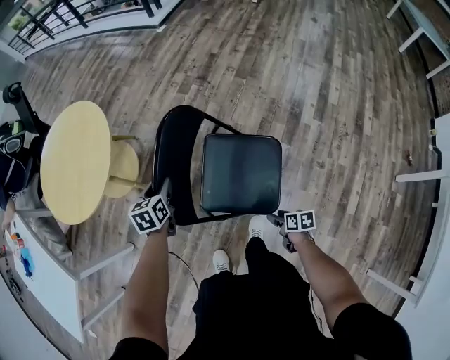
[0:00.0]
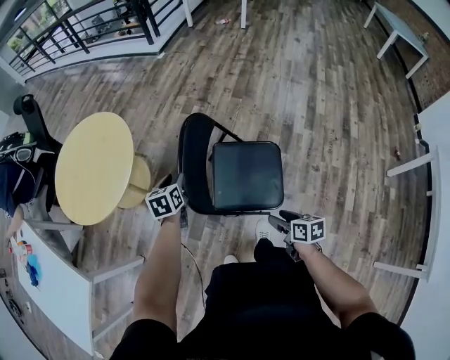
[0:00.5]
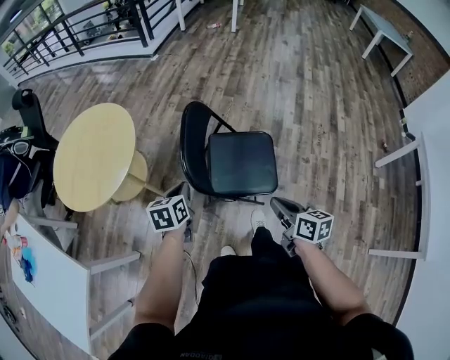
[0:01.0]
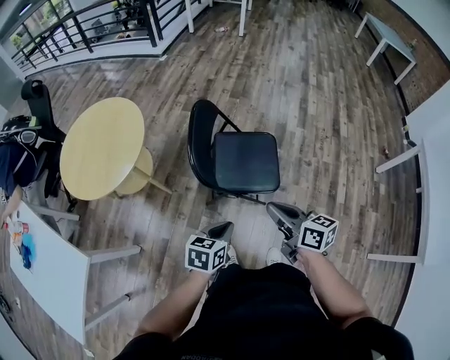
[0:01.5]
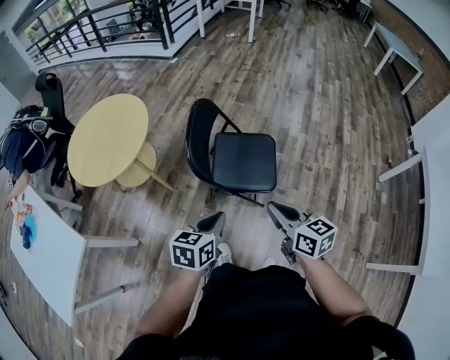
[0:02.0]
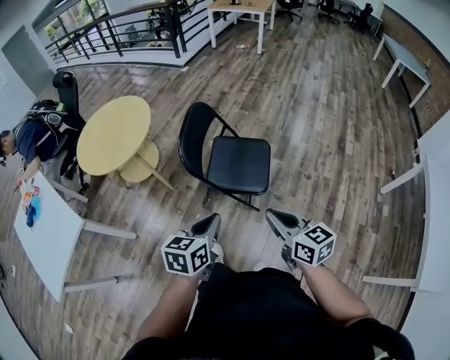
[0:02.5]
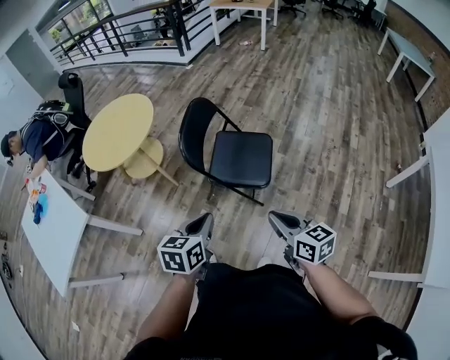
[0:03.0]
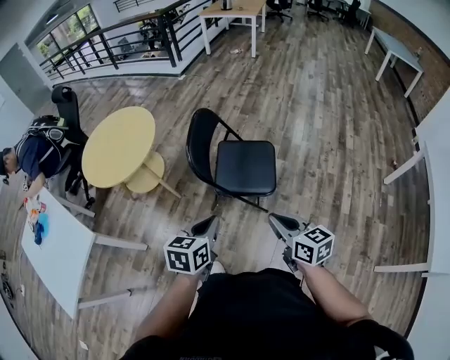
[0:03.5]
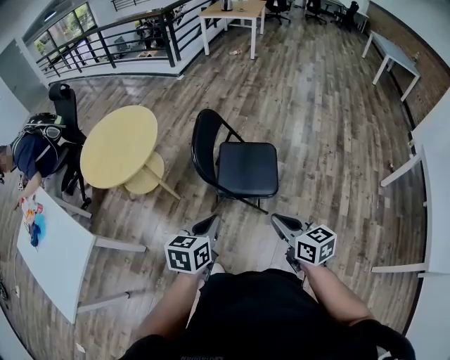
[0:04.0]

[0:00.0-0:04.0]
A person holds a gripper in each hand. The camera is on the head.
0:00.0 to 0:02.0: The left gripper moves approximately 40 cm, rotates roughly 30 degrees, and closes its fingers, while the right gripper travels upward by about 40 cm, tilts its fingers approximately 30 degrees upward, and closes up.
0:02.0 to 0:04.0: The right gripper travels backward by roughly 10 cm. The left gripper ends up roughly 5 cm from where it was.

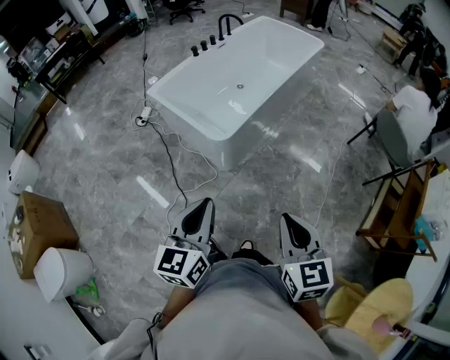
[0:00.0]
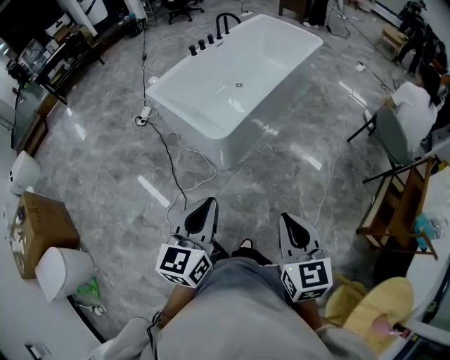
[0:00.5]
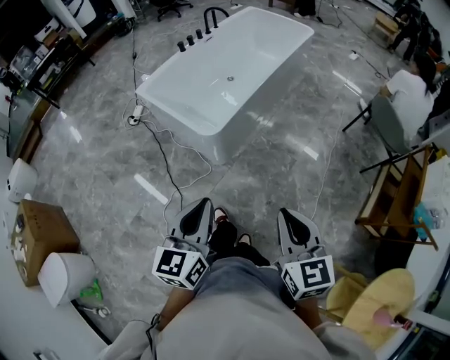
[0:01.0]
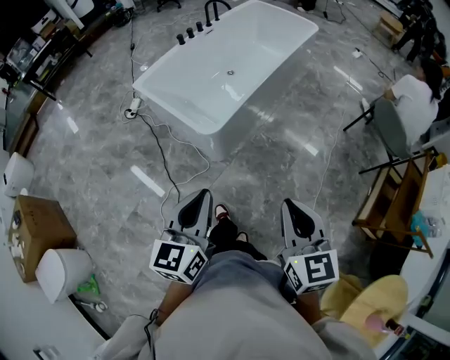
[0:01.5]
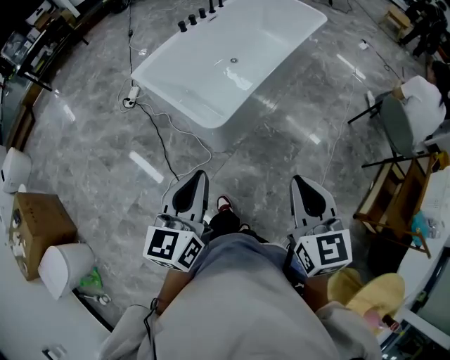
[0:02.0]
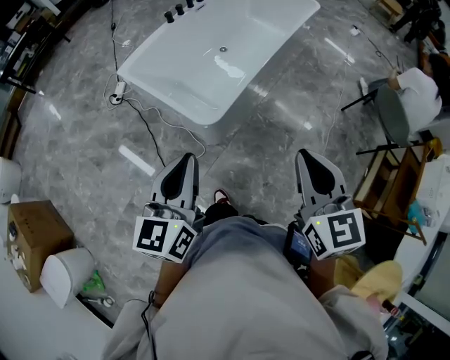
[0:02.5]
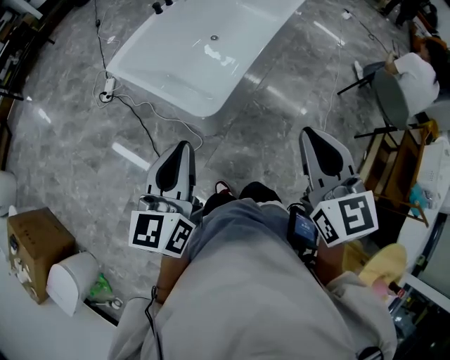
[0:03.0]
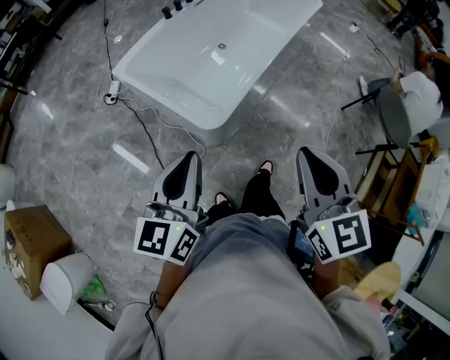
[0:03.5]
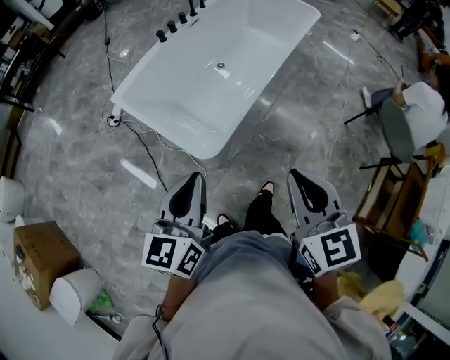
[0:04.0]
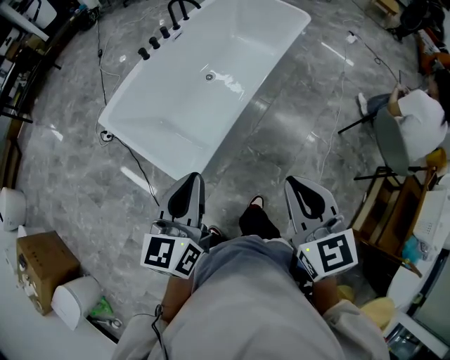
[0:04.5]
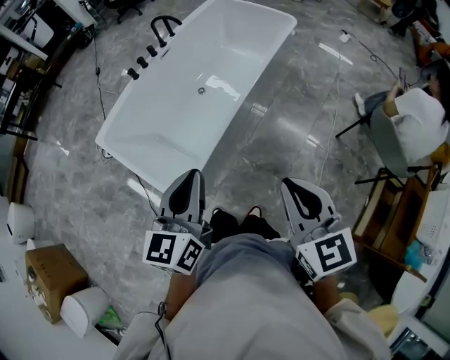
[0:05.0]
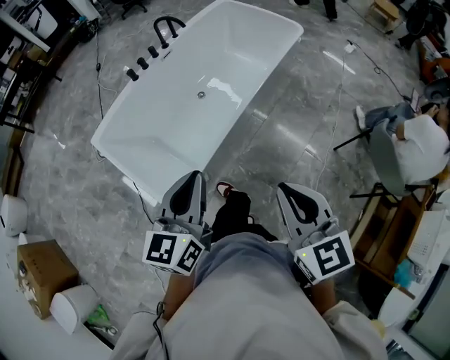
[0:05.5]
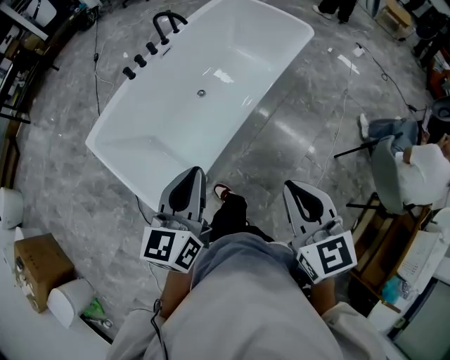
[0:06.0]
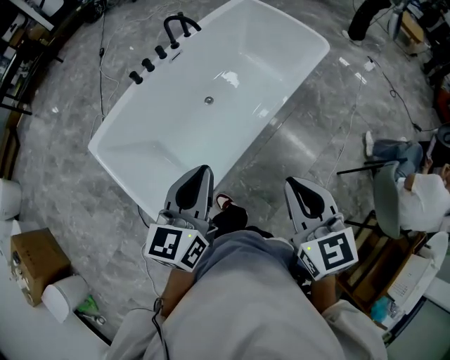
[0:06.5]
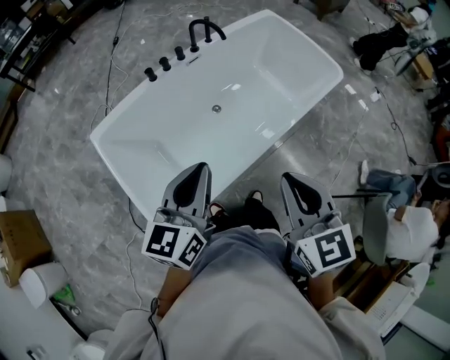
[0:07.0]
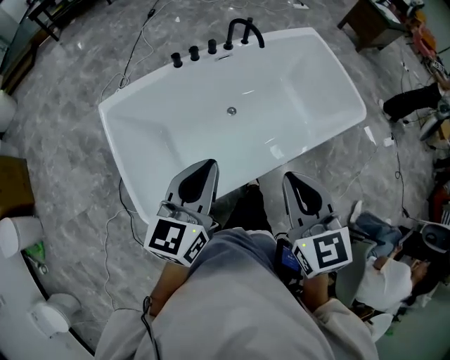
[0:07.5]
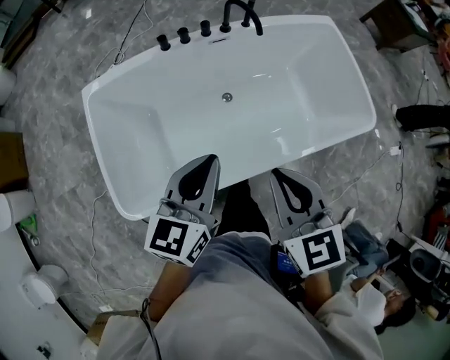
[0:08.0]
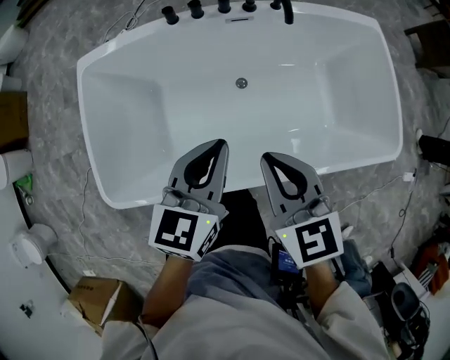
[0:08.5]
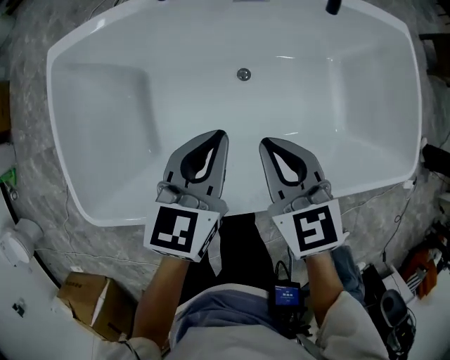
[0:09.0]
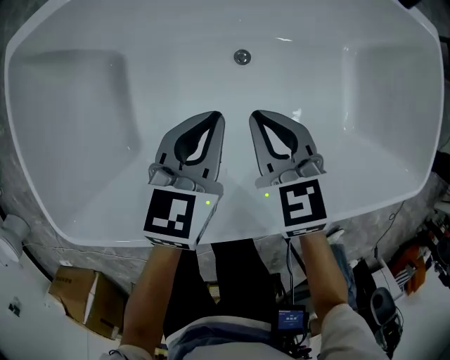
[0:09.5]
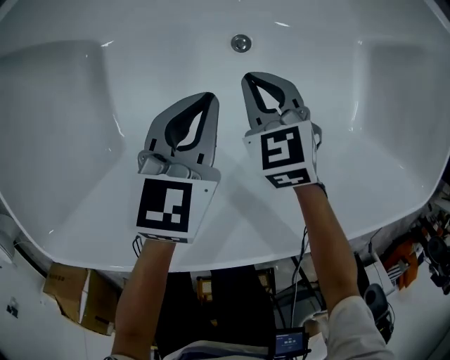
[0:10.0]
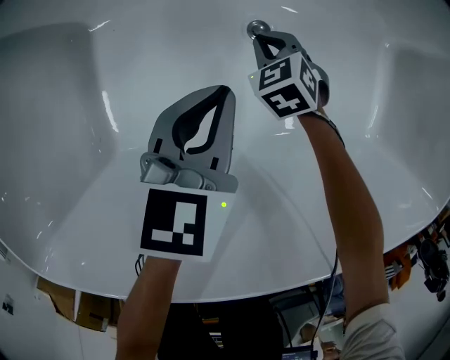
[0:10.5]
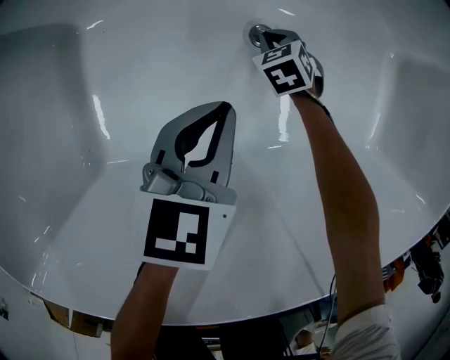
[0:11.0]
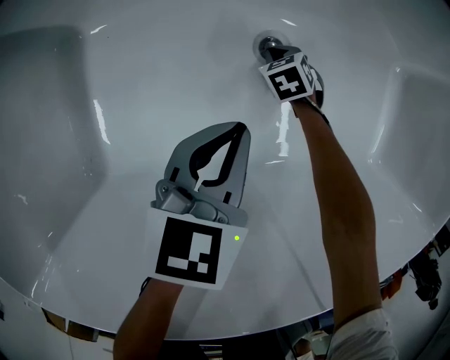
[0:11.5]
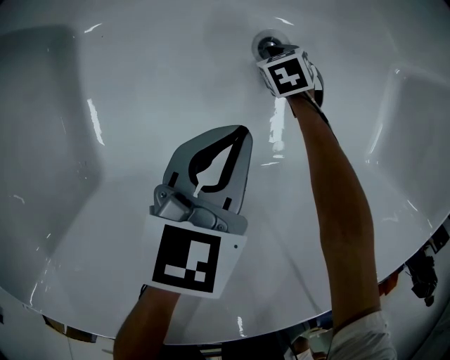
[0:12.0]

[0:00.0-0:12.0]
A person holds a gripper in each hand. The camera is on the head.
0:00.0 to 0:02.0: The grippers both shift forward by roughly 15 cm.
0:02.0 to 0:04.0: Both grippers travel together forward, approximately 20 cm.
0:04.0 to 0:06.0: The grippers both shift forward and to the right by some 35 cm.
0:06.0 to 0:08.0: The left gripper moves approximately 30 cm, and changes its angle by about 20 degrees. The right gripper shifts by roughly 40 cm, and turns by some 40 degrees.
0:08.0 to 0:10.0: The grippers both shift downward and forward by about 60 cm. The right gripper changes its angle by about 30 degrees. The left gripper changes its angle by some 20 degrees.
0:10.0 to 0:12.0: The right gripper goes approximately 30 cm downward, and turns by some 30 degrees; the left gripper moves downward, approximately 10 cm.

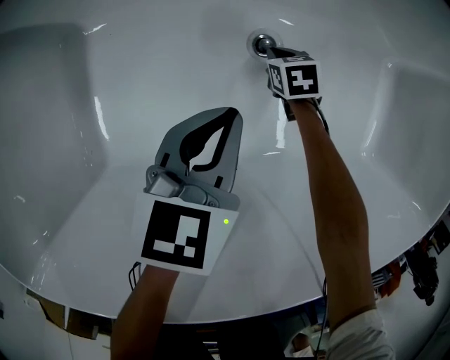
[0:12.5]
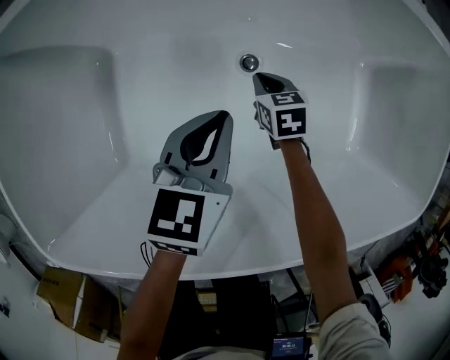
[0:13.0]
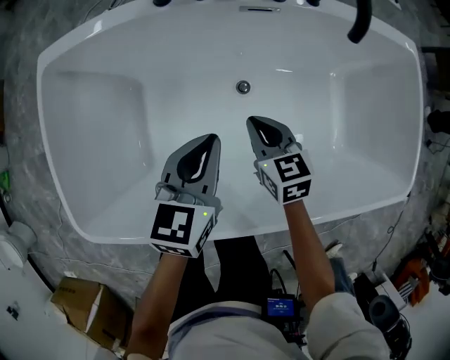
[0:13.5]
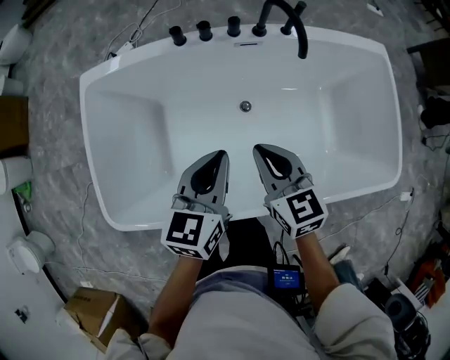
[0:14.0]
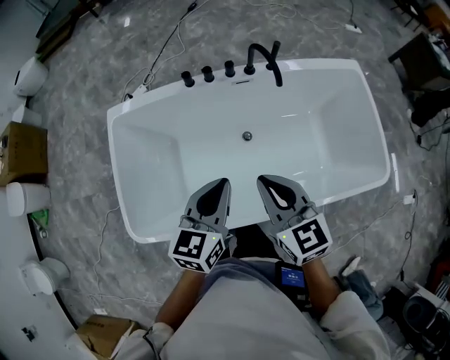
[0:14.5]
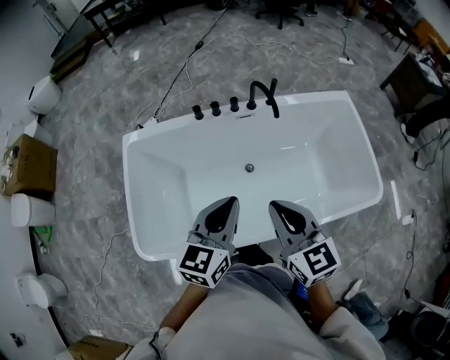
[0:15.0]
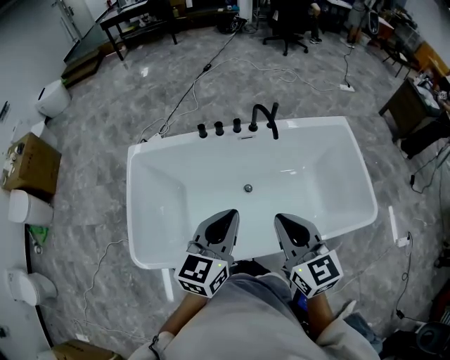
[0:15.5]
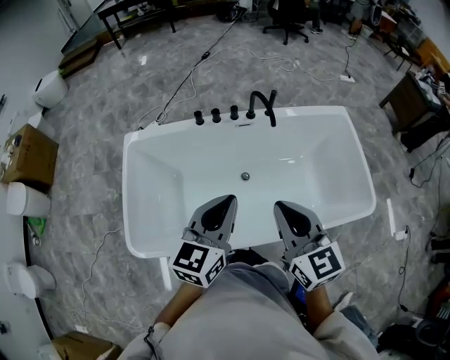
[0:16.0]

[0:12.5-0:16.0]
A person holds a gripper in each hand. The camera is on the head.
0:12.5 to 0:14.5: Both grippers move upward, approximately 70 cm. The left gripper turns by approximately 20 degrees; the right gripper tips its fingers upward by some 50 degrees.
0:14.5 to 0:16.0: Both grippers travel together upward and backward, roughly 15 cm.

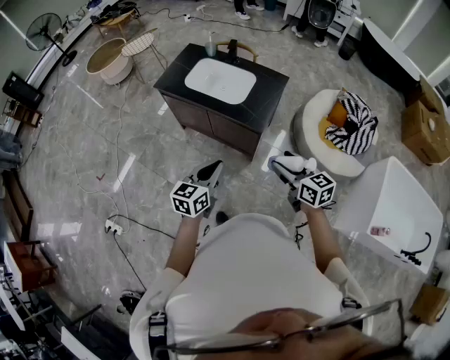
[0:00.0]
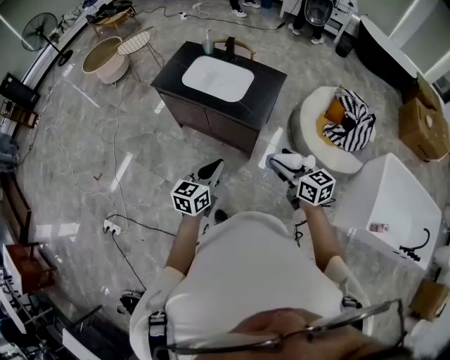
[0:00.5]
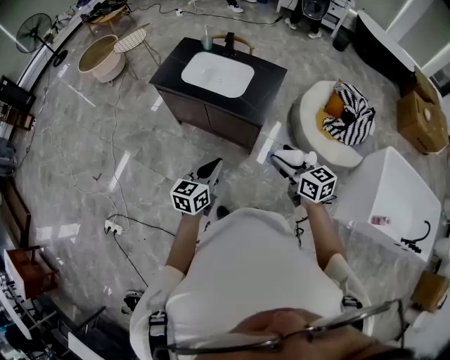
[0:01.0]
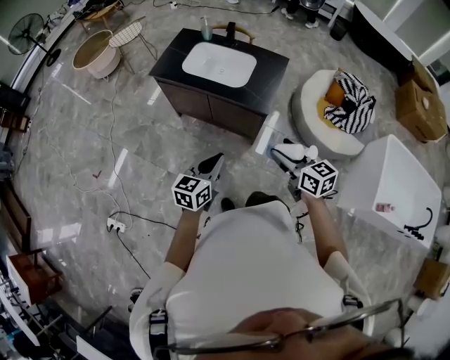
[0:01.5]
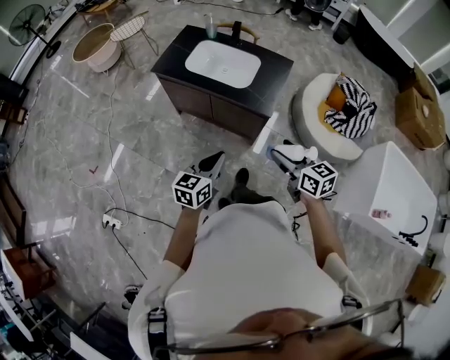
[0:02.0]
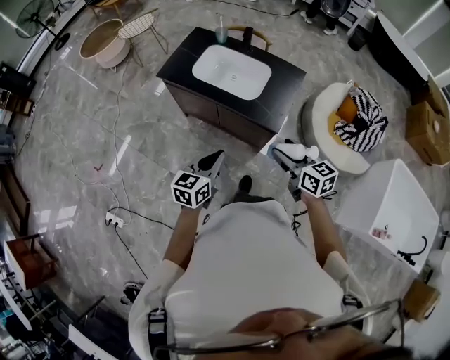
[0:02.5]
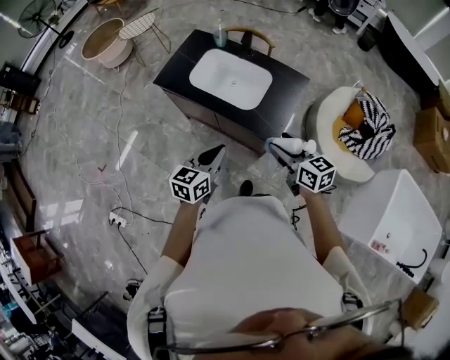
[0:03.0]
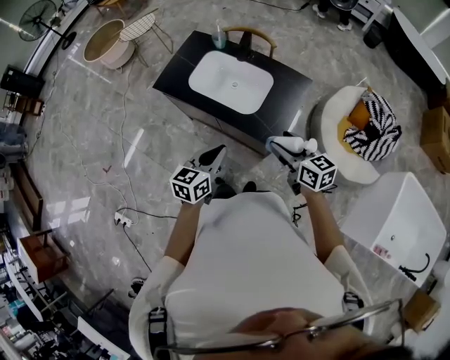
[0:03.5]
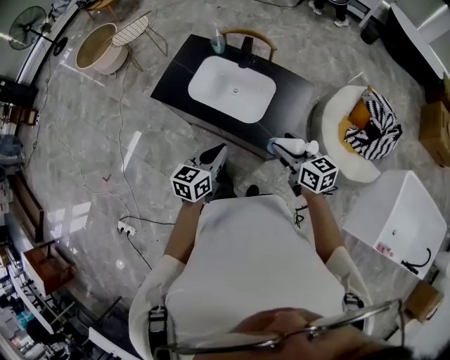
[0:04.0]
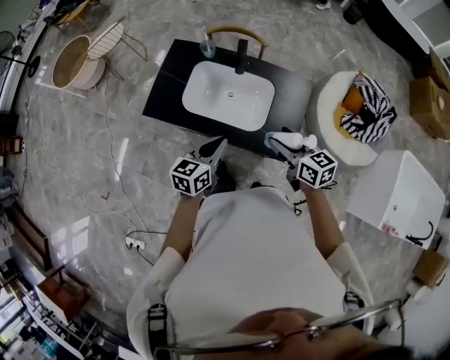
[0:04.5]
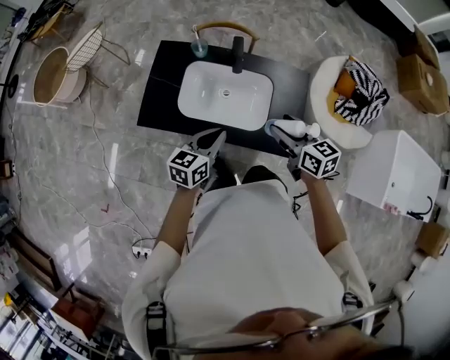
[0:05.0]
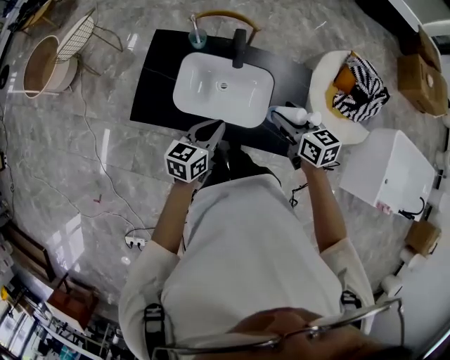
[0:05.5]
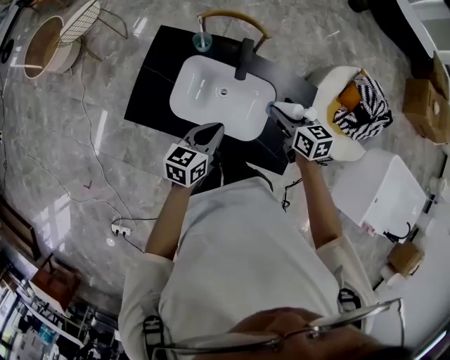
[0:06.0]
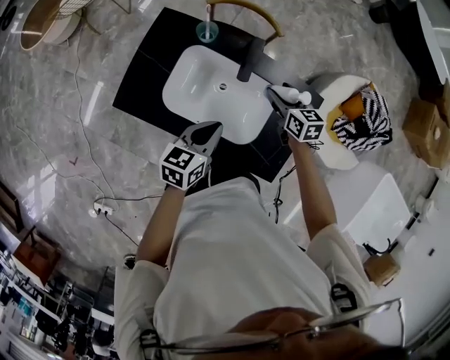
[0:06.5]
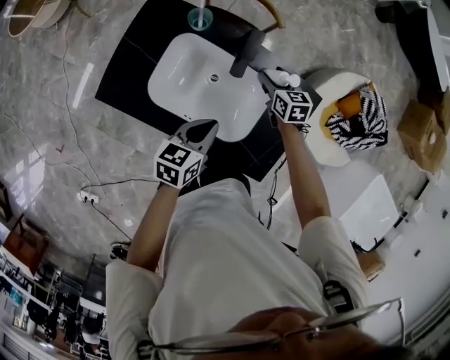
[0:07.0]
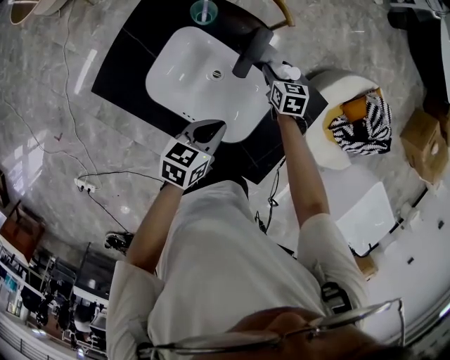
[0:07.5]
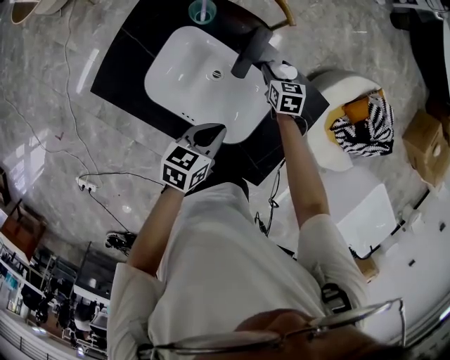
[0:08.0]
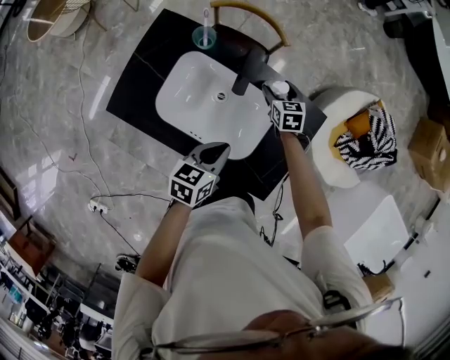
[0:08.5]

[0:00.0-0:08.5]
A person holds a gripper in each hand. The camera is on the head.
0:00.0 to 0:02.0: Both grippers move to the left, approximately 10 cm.
0:02.0 to 0:04.0: Both grippers travel together forward, about 40 cm.
0:04.0 to 0:06.5: The two grippers go approximately 40 cm forward and downward.
0:06.5 to 0:08.5: The right gripper moves downward and forward, some 15 cm. The left gripper heads downward and to the right, covering about 10 cm.
